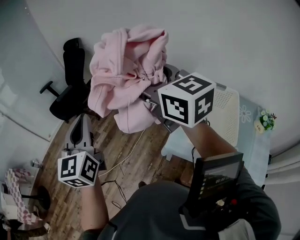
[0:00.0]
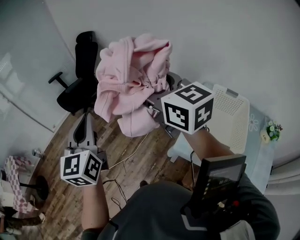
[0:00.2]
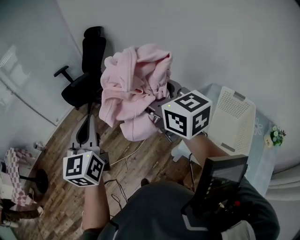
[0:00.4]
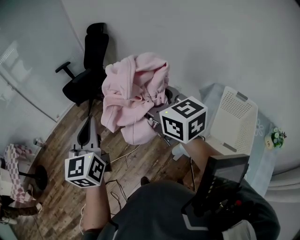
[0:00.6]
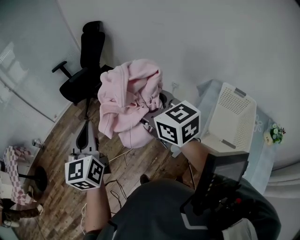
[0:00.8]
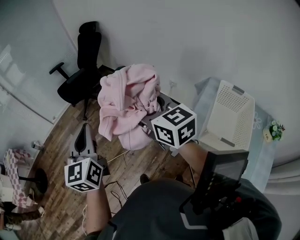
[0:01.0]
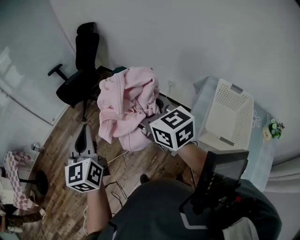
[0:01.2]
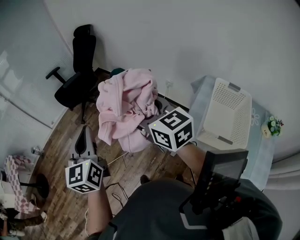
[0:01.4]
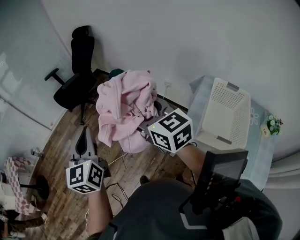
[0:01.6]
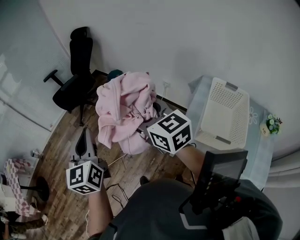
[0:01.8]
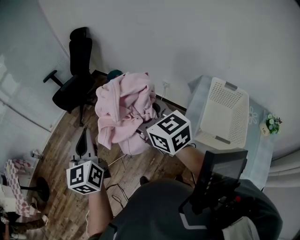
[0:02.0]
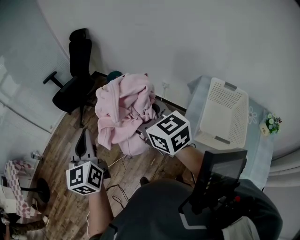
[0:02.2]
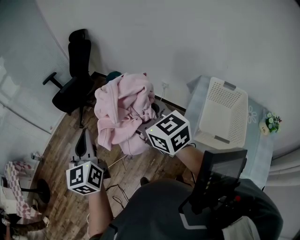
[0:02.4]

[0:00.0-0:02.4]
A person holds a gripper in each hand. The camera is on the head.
0:00.0 to 0:01.2: Both grippers move to the left and downward, roughly 15 cm.
0:01.2 to 0:02.4: Both grippers stay put.

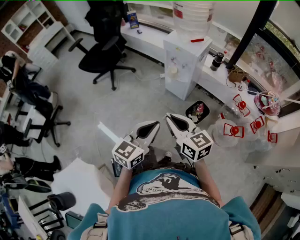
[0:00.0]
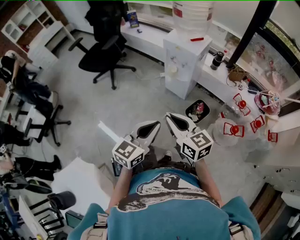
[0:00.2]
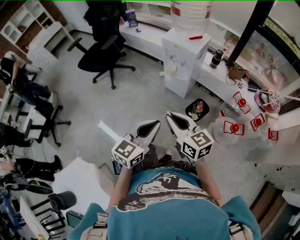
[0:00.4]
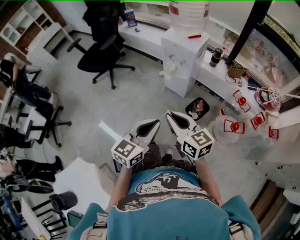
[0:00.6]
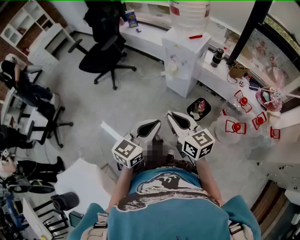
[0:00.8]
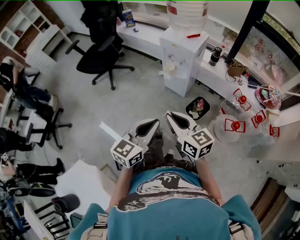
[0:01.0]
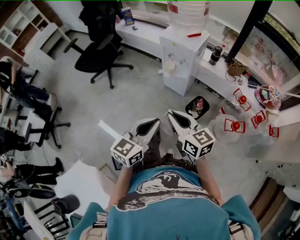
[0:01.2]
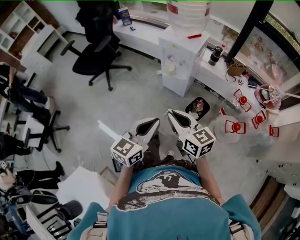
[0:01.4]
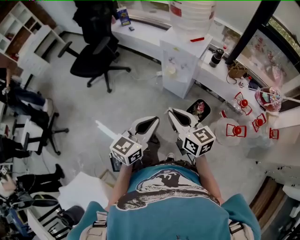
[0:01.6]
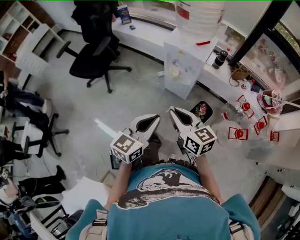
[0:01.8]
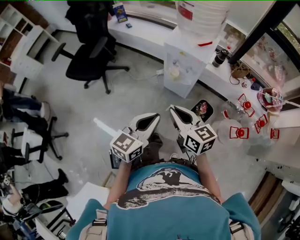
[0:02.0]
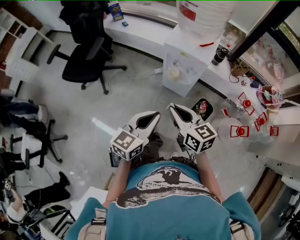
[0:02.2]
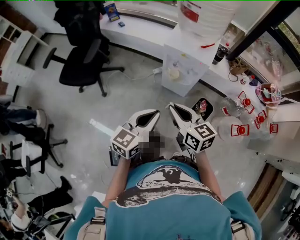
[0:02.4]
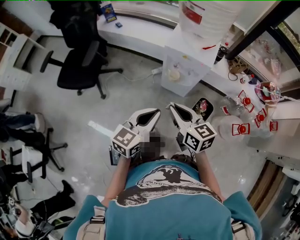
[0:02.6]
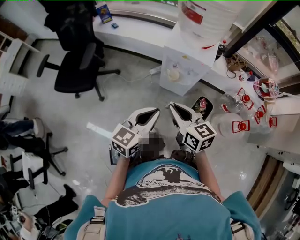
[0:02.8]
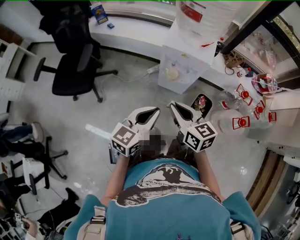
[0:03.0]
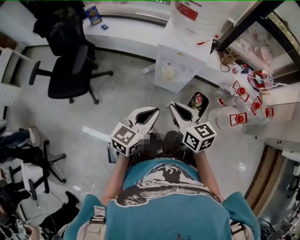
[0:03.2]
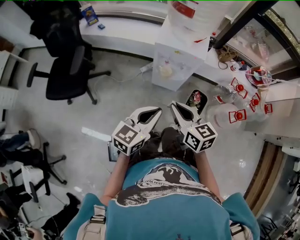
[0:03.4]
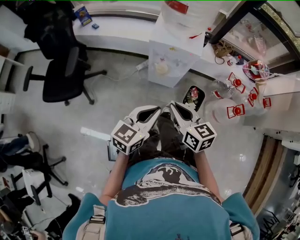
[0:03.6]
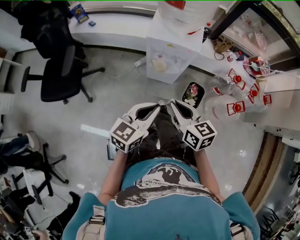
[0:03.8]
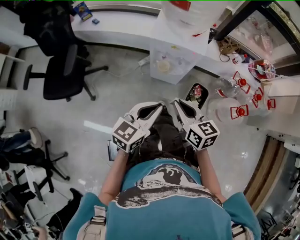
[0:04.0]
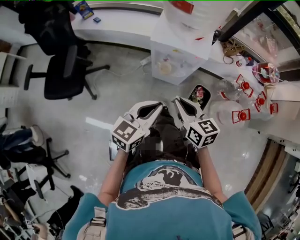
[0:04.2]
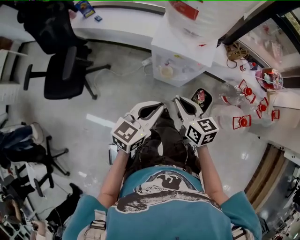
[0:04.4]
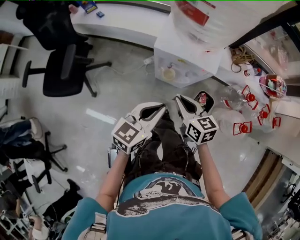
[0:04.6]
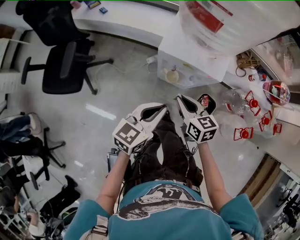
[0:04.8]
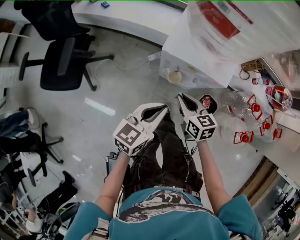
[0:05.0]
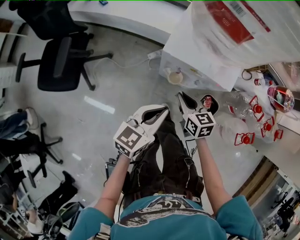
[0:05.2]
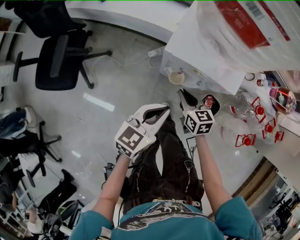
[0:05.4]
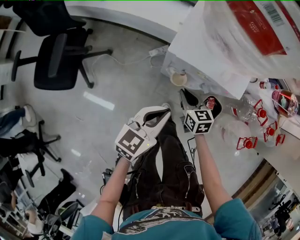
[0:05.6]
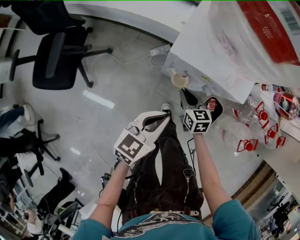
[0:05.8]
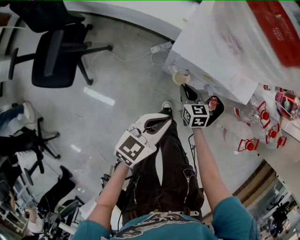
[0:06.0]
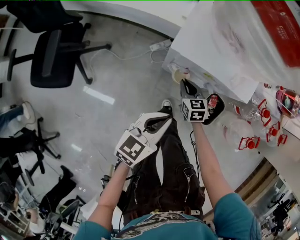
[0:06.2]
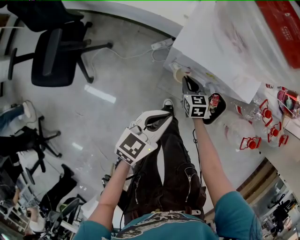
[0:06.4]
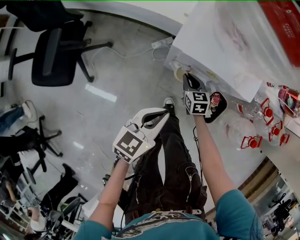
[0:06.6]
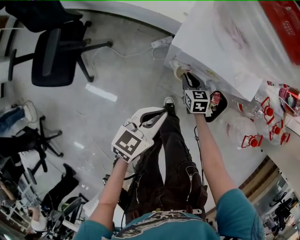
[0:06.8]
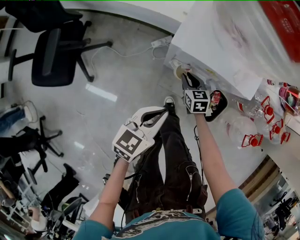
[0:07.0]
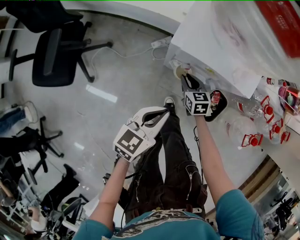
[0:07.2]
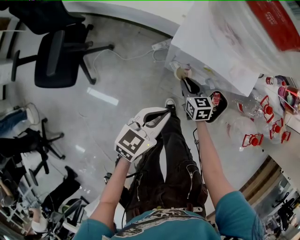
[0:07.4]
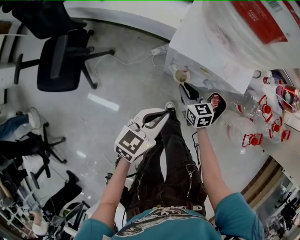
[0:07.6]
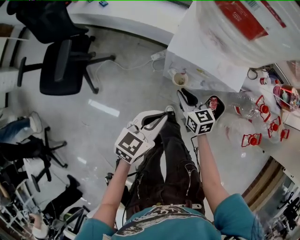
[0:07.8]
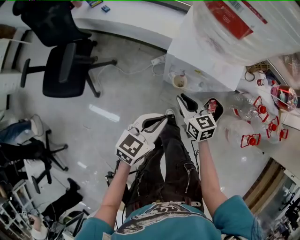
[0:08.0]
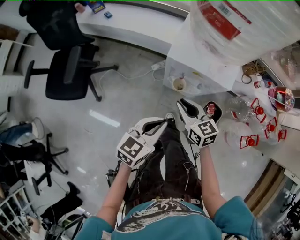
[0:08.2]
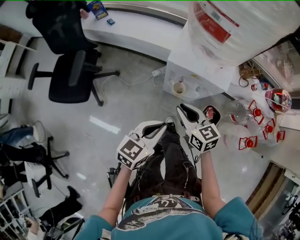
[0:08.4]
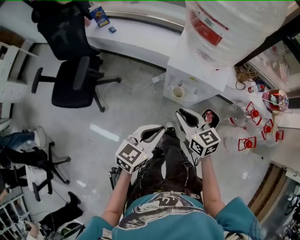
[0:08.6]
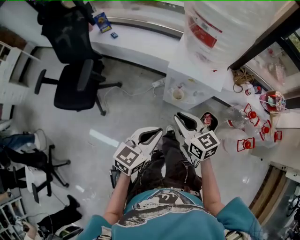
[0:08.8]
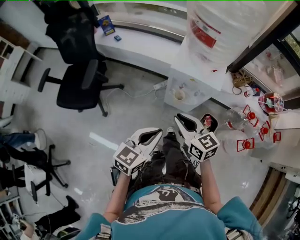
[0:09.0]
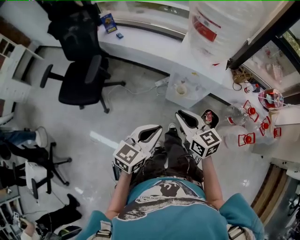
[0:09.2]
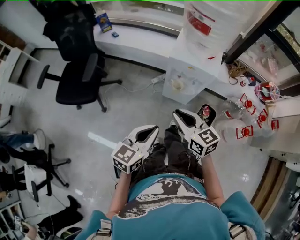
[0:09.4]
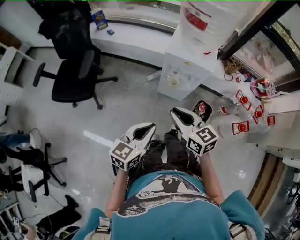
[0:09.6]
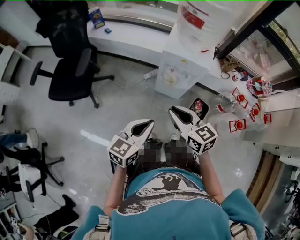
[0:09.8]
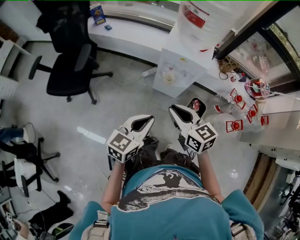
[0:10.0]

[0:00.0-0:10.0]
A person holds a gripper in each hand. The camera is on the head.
0:00.0 to 0:01.4: Both grippers move forward, some 5 cm.
0:01.4 to 0:02.8: Both grippers move forward and to the left, approximately 25 cm.
0:02.8 to 0:04.2: The left gripper goes approximately 5 cm forward; the right gripper moves forward and to the right, approximately 10 cm.
0:04.2 to 0:05.8: The left gripper is displaced downward and forward by about 20 cm. Meanwhile the right gripper travels downward and forward by some 30 cm.
0:05.8 to 0:07.2: The right gripper shifts roughly 5 cm downward.
0:07.2 to 0:08.6: The right gripper shifts roughly 30 cm upward and backward, and swivels roughly 20 degrees; the left gripper is displaced upward and backward by some 15 cm.
0:08.6 to 0:10.0: The right gripper is displaced backward and upward by approximately 15 cm, while the left gripper shifts roughly 10 cm backward.

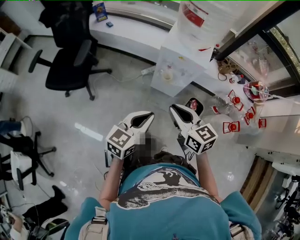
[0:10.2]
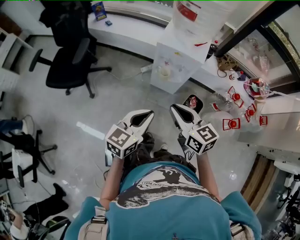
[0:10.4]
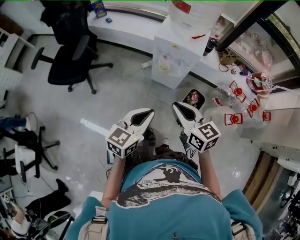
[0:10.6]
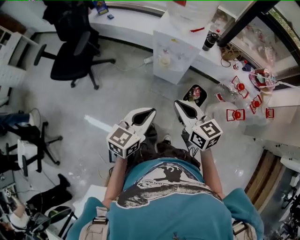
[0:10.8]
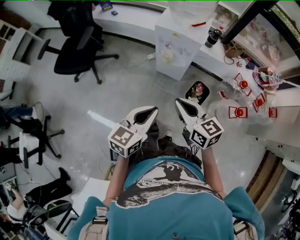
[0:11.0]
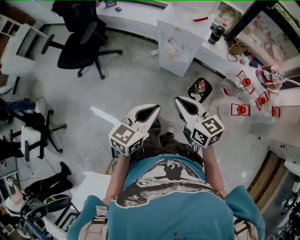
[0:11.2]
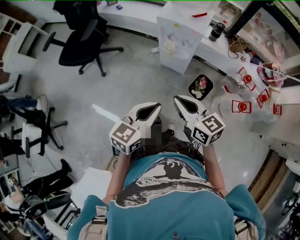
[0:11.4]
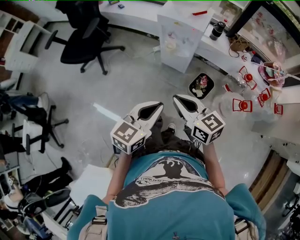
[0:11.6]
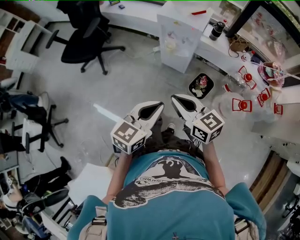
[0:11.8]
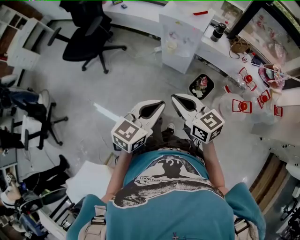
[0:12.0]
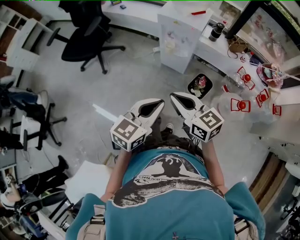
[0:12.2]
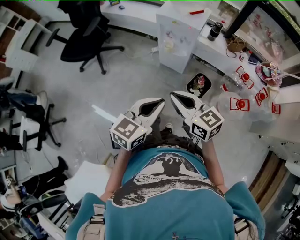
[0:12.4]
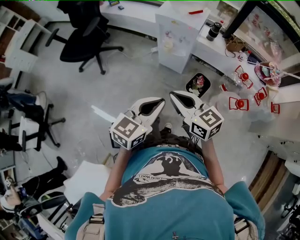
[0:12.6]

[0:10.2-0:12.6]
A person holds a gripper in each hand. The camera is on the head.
0:10.2 to 0:11.4: Both grippers travel together backward and to the right, some 15 cm.
0:11.4 to 0:12.6: The left gripper moves approximately 5 cm.

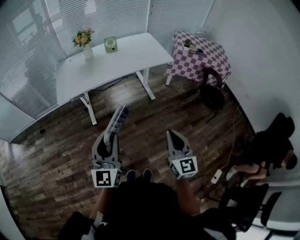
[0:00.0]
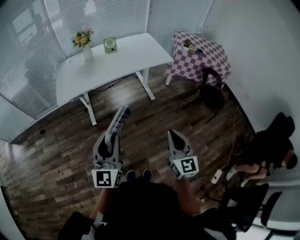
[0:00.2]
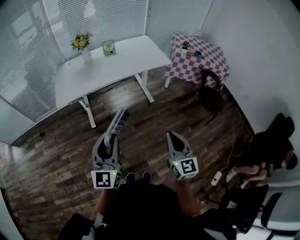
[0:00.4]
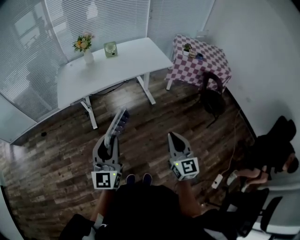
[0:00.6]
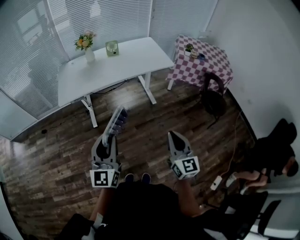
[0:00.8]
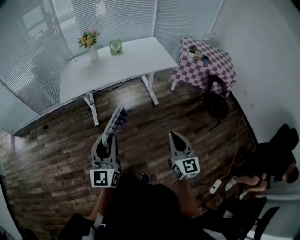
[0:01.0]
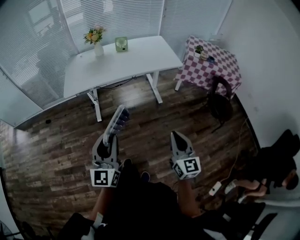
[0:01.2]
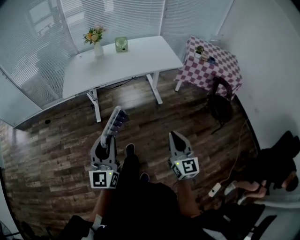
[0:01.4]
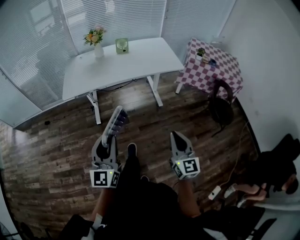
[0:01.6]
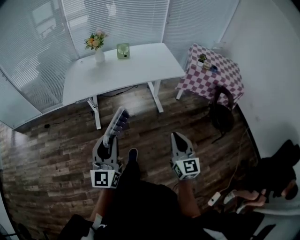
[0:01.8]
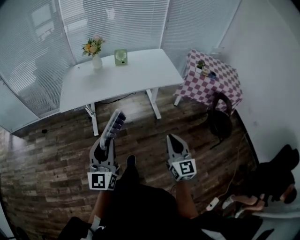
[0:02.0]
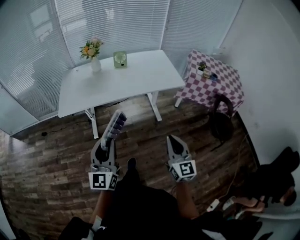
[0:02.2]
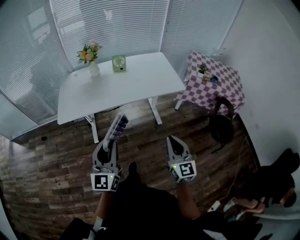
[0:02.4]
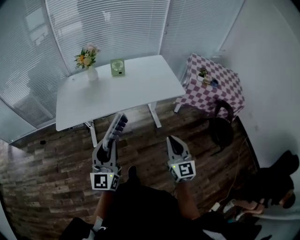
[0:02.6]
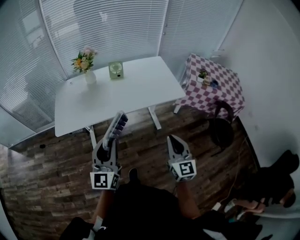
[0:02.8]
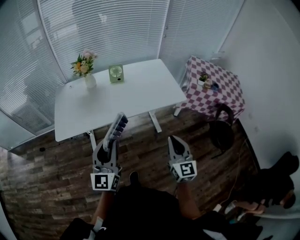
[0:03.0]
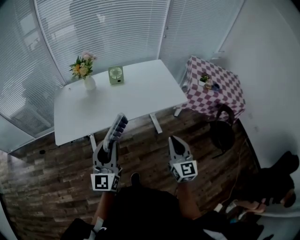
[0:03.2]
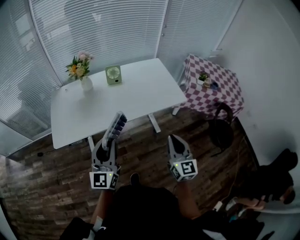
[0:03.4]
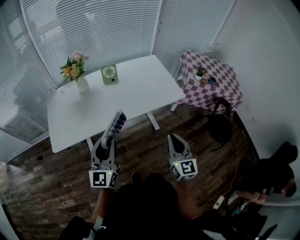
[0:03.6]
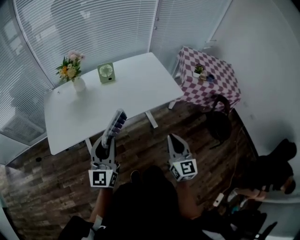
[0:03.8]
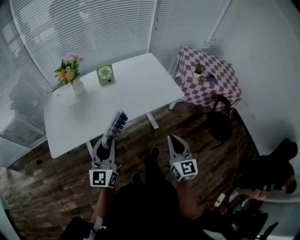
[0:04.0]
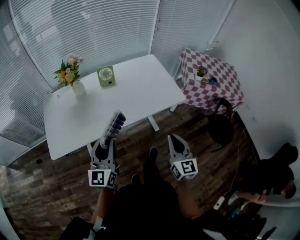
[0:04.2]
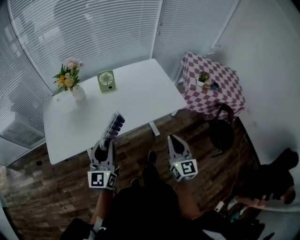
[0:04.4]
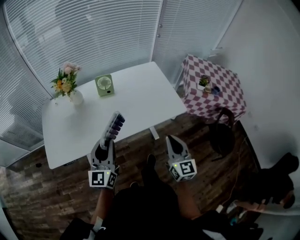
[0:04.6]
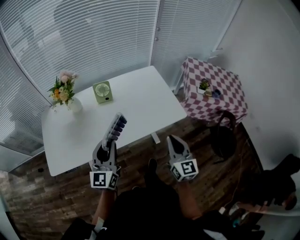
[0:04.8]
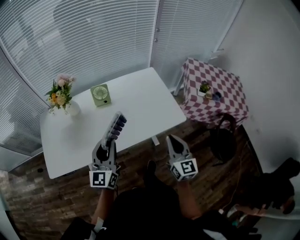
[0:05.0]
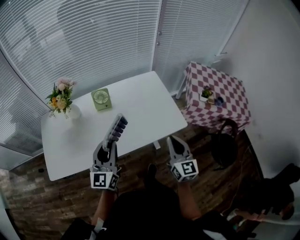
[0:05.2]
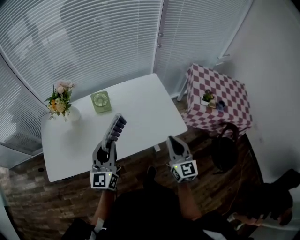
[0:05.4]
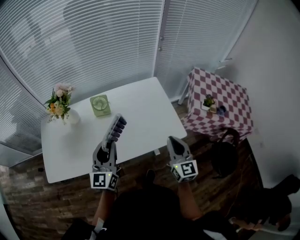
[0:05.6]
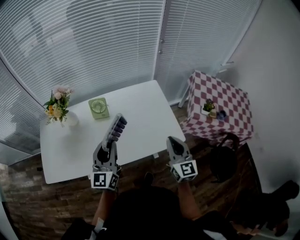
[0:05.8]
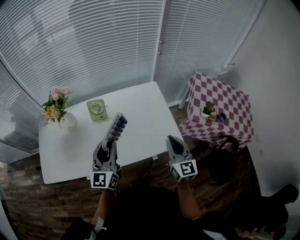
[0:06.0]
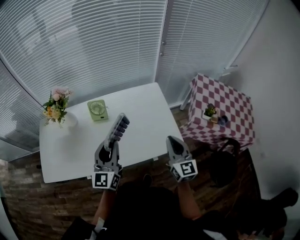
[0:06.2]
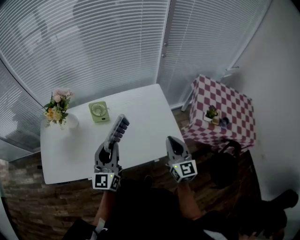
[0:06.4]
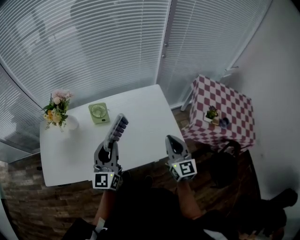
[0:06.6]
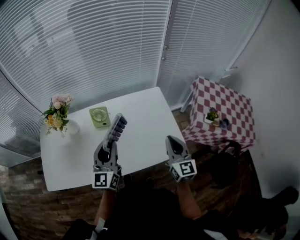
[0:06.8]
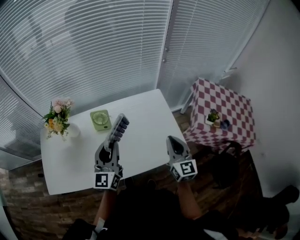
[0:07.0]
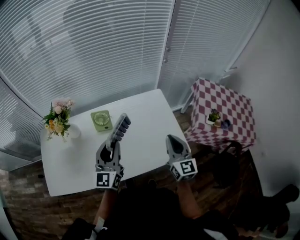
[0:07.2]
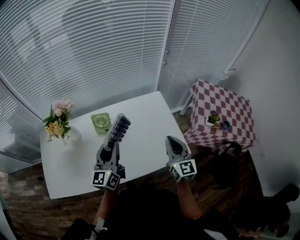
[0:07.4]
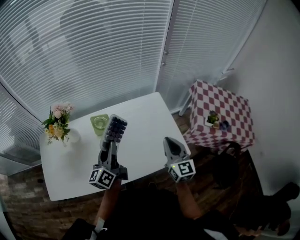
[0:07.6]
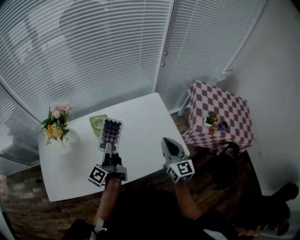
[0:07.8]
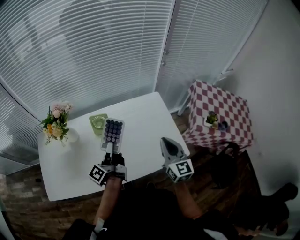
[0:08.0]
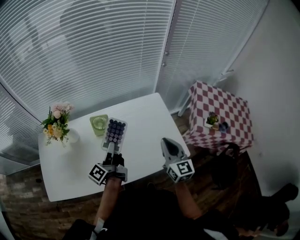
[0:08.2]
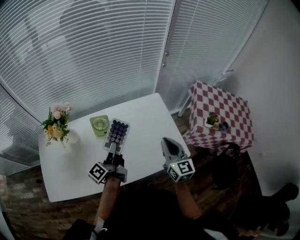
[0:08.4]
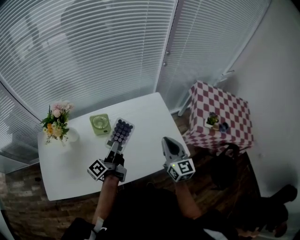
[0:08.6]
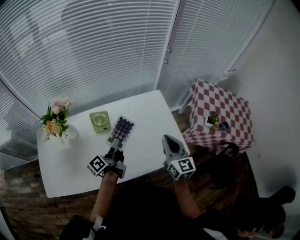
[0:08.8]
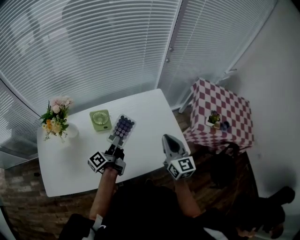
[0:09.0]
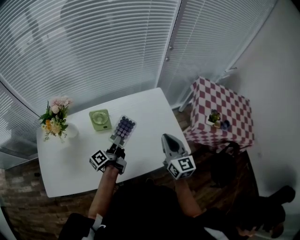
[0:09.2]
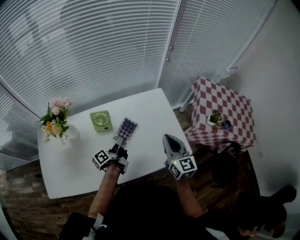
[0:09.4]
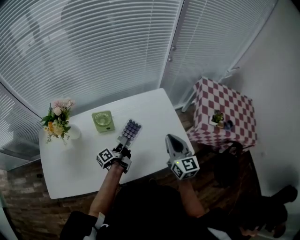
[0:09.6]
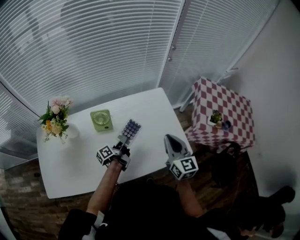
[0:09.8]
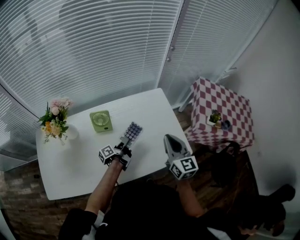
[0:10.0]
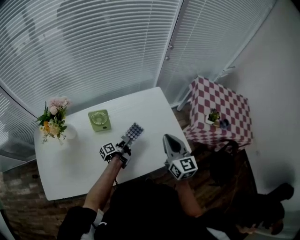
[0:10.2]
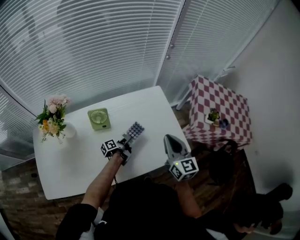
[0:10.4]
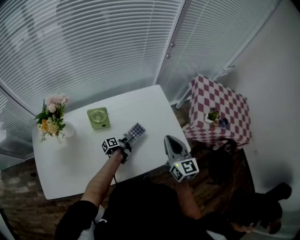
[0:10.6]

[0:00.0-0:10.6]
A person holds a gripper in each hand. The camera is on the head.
0:00.0 to 0:01.6: The right gripper heads to the right and forward, covering some 10 cm.
0:01.6 to 0:03.0: Both grippers travel together forward, about 30 cm.
0:03.0 to 0:04.6: The two grippers go about 20 cm forward.
0:04.6 to 0:06.0: Both grippers travel together forward and to the right, some 25 cm.
0:06.0 to 0:07.6: Both grippers travel together forward and to the left, some 10 cm. The left gripper rotates about 30 degrees.
0:07.6 to 0:09.0: The left gripper goes about 10 cm downward, and changes its angle by approximately 40 degrees.
0:09.0 to 0:10.6: The left gripper is displaced downward by approximately 25 cm, and changes its angle by about 30 degrees.
